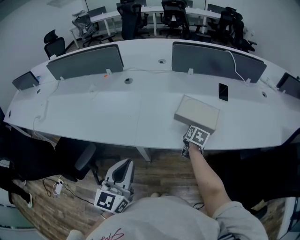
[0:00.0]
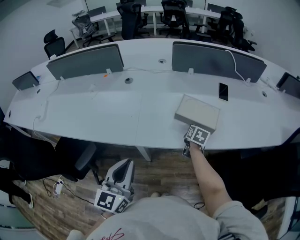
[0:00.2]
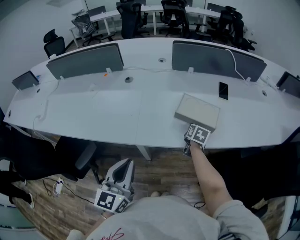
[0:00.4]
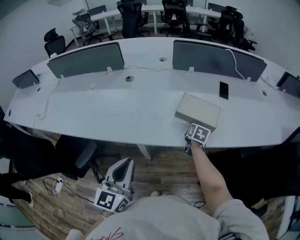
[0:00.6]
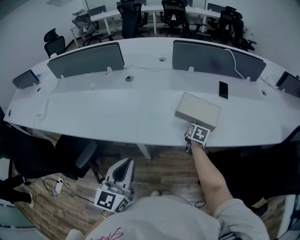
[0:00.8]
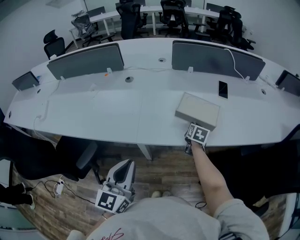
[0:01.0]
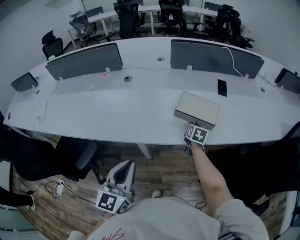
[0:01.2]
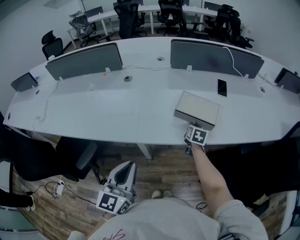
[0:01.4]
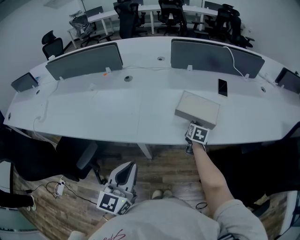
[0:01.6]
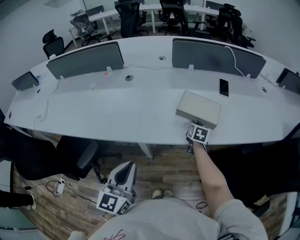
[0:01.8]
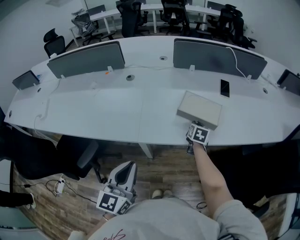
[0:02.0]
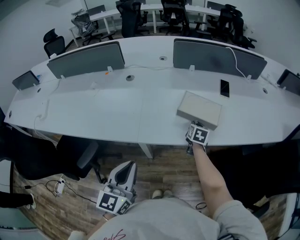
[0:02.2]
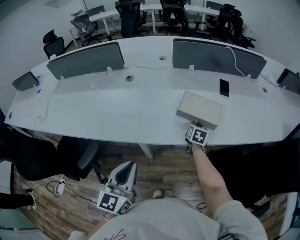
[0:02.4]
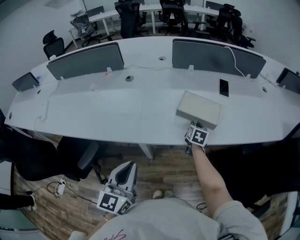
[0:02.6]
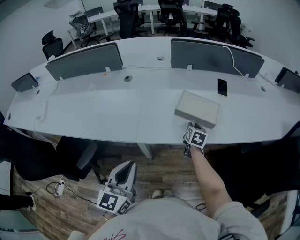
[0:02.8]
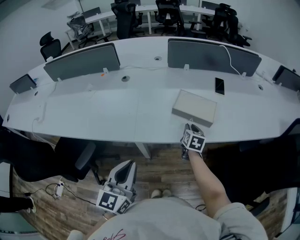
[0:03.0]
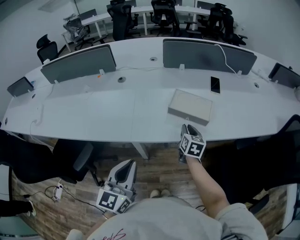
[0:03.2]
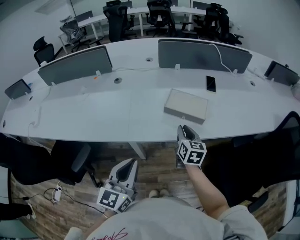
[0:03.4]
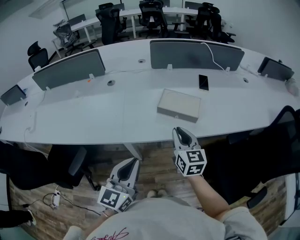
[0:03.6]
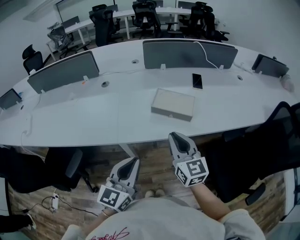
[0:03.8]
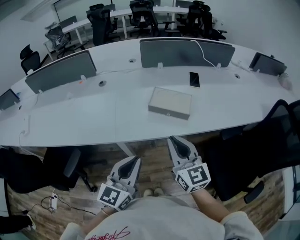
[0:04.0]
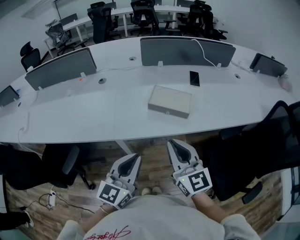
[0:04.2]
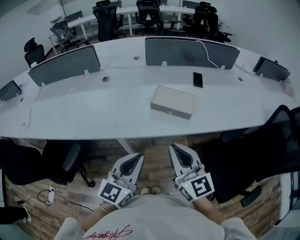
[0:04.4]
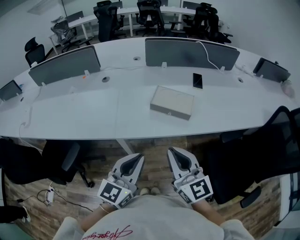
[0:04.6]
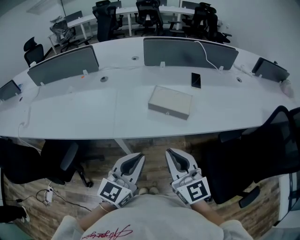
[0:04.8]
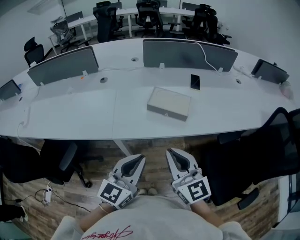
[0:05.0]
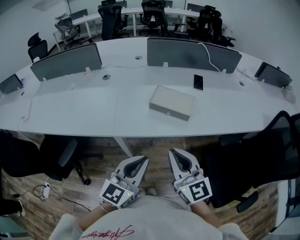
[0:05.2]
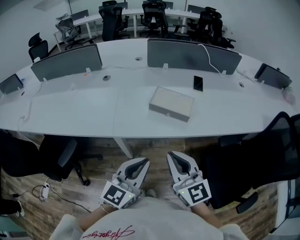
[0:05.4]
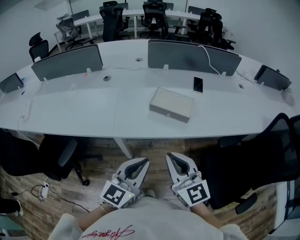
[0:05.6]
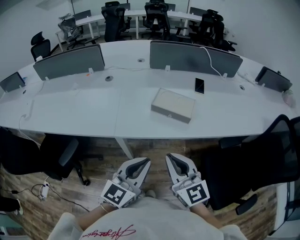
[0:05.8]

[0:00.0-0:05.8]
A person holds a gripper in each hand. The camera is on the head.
0:00.0 to 0:01.4: The grippers stay close to where they were, moving slightly.
0:01.4 to 0:02.8: Both grippers stay put.
0:02.8 to 0:04.4: The left gripper shifts about 10 cm to the right. The right gripper travels backward and upward by roughly 35 cm, and tilts its fingers approximately 40 degrees upward.
0:04.4 to 0:05.8: There are only small adjustments of the grippers.

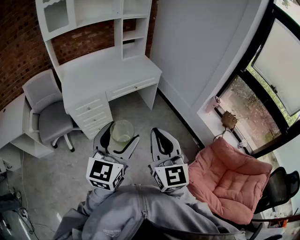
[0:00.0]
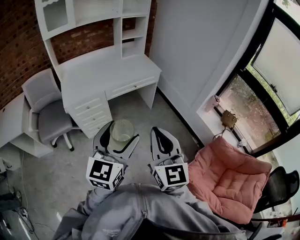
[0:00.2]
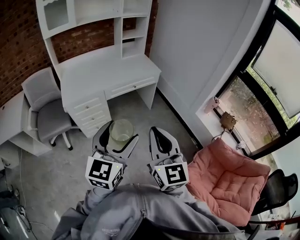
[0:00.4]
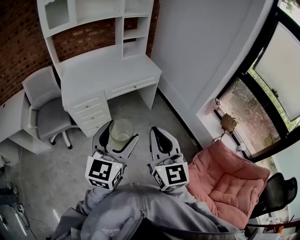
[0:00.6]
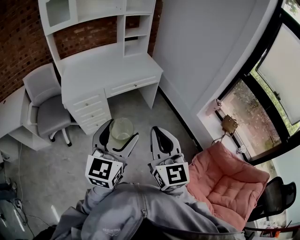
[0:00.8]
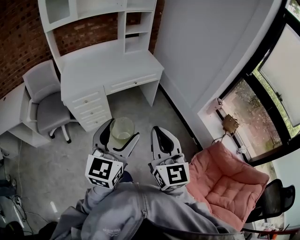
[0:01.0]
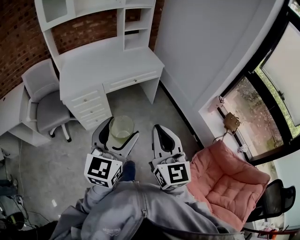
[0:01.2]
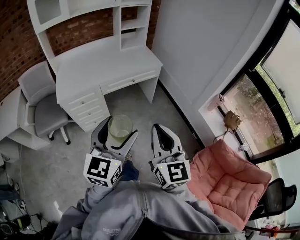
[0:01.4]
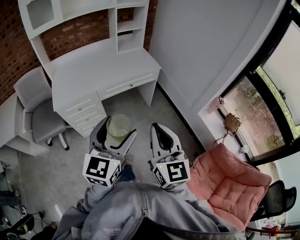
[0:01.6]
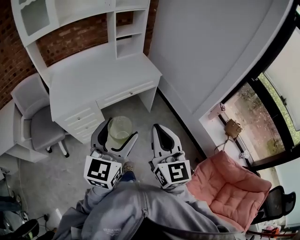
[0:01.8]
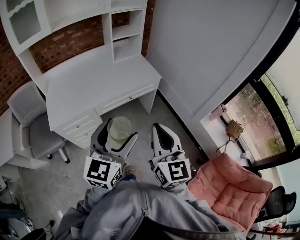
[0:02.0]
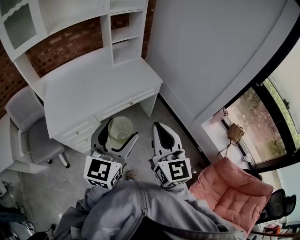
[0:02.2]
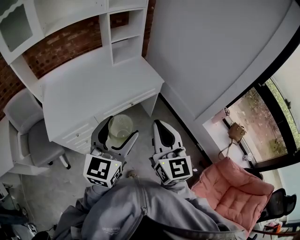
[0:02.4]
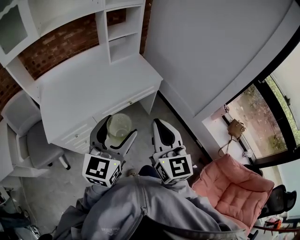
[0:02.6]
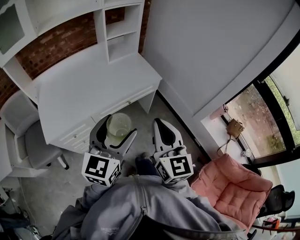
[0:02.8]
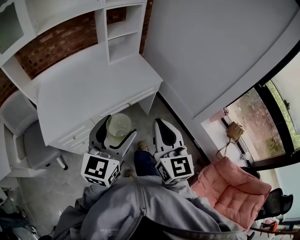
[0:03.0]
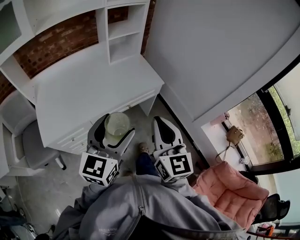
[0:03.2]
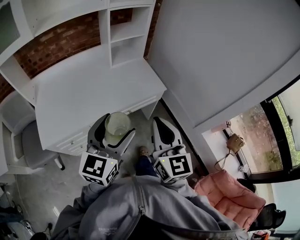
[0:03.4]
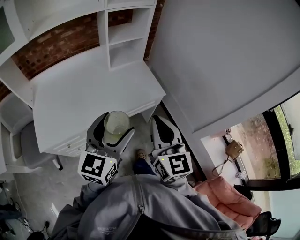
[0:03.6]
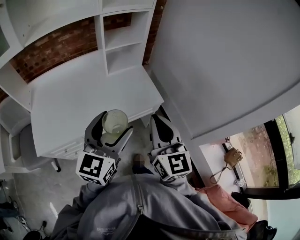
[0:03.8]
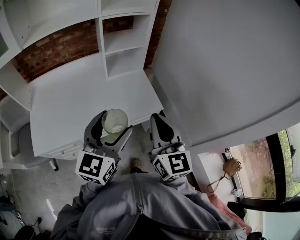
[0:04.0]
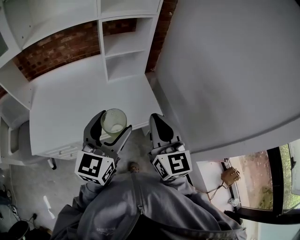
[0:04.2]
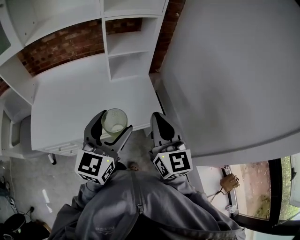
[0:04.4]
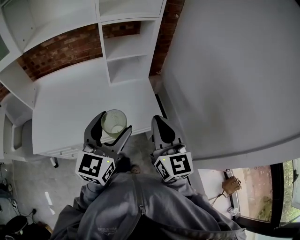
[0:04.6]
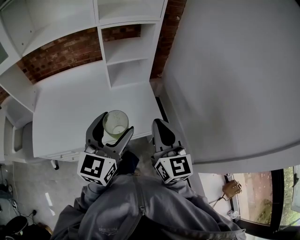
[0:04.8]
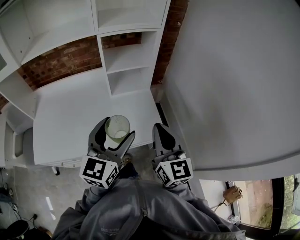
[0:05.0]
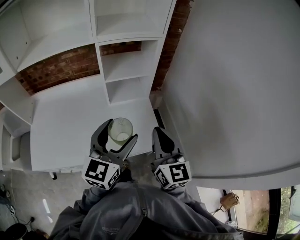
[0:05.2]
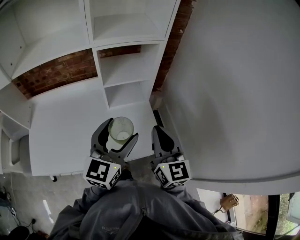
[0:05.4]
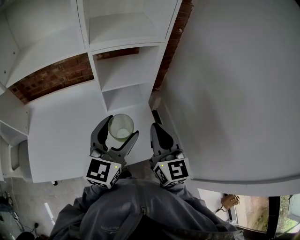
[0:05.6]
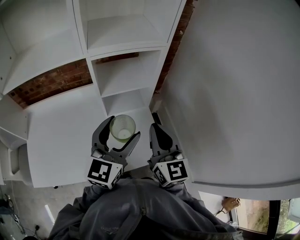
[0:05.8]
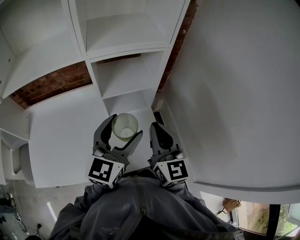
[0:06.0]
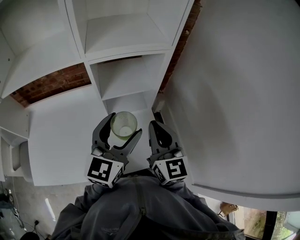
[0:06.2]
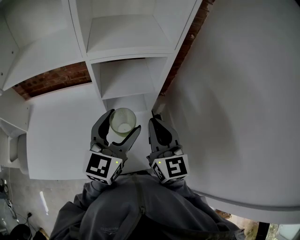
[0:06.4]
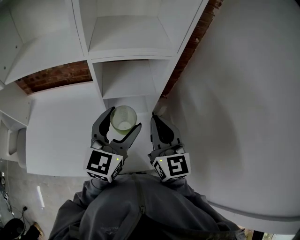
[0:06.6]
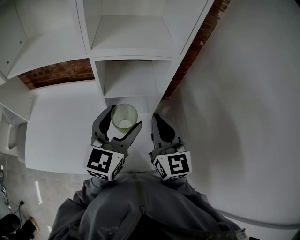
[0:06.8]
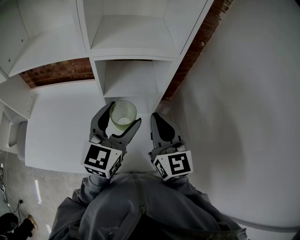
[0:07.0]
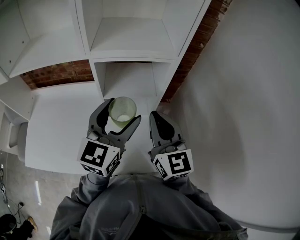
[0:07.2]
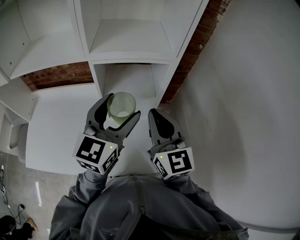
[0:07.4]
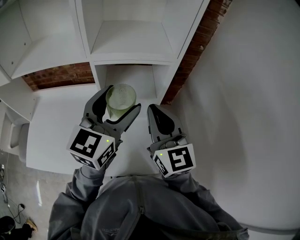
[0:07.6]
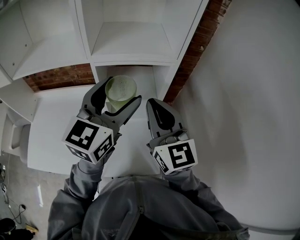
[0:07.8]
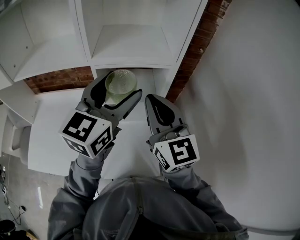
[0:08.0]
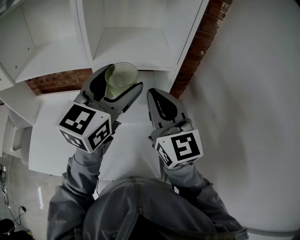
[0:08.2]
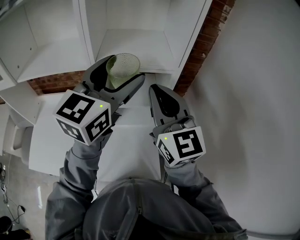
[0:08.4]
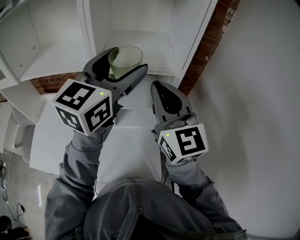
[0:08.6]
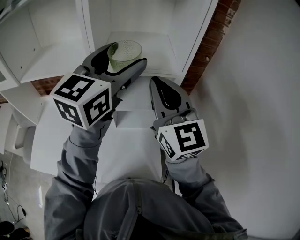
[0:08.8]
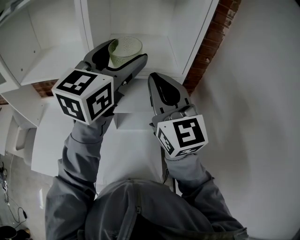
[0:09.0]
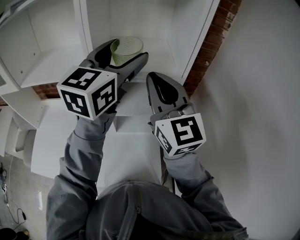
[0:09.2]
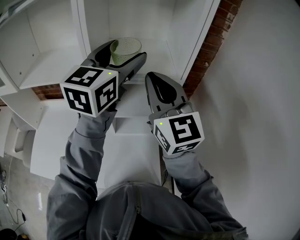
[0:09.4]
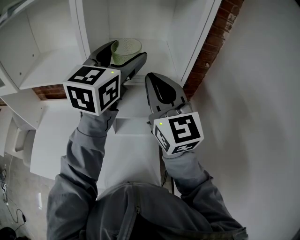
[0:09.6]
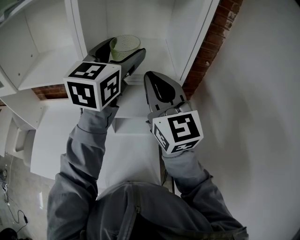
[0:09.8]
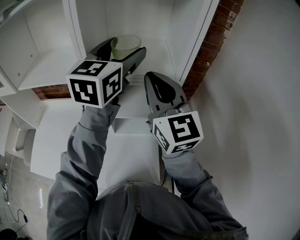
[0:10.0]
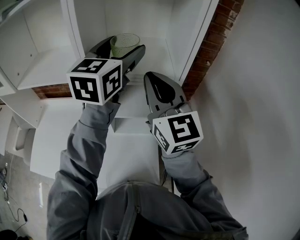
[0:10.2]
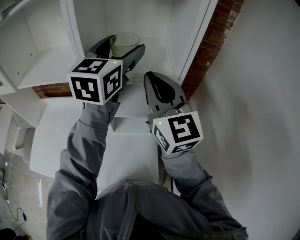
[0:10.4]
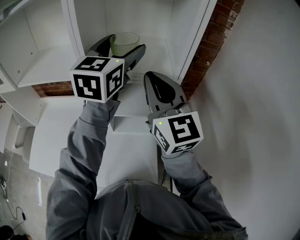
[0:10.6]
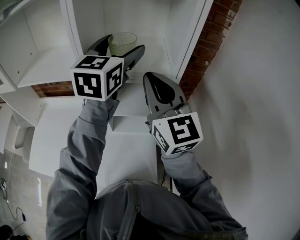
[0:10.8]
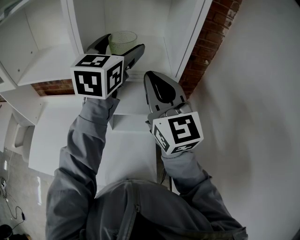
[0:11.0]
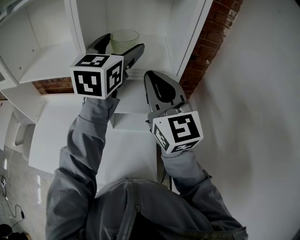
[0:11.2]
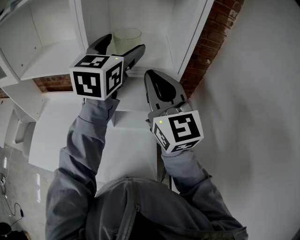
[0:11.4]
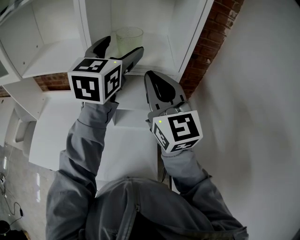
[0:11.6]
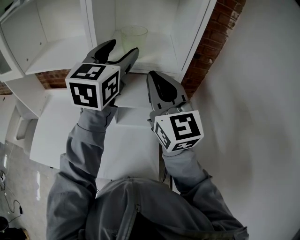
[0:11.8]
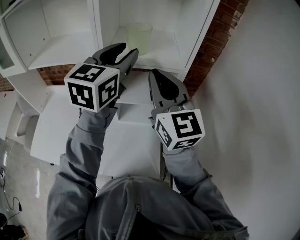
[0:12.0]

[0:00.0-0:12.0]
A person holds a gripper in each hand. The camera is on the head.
0:00.0 to 0:01.6: The grippers both shift forward by some 15 cm.
0:01.6 to 0:03.0: The grippers both shift forward by about 25 cm.
0:03.0 to 0:04.4: The two grippers go approximately 30 cm forward.
0:04.4 to 0:06.0: Both grippers travel together forward, about 25 cm.
0:06.0 to 0:07.6: Both grippers travel together upward and forward, about 10 cm.
0:07.6 to 0:09.0: The grippers both shift upward and forward by about 15 cm.
0:09.0 to 0:10.4: The left gripper goes about 10 cm forward.
0:10.4 to 0:12.0: The left gripper shifts about 5 cm backward, and closes.

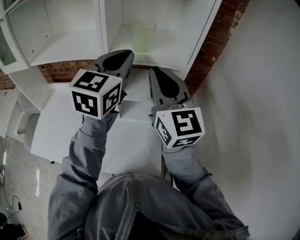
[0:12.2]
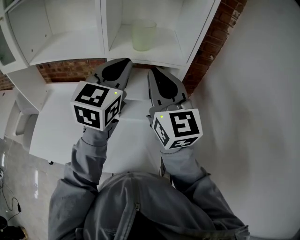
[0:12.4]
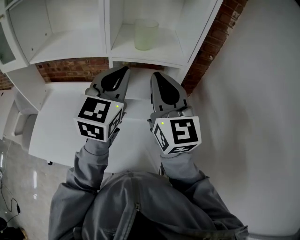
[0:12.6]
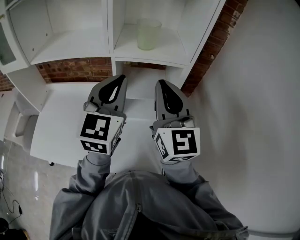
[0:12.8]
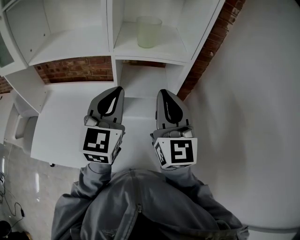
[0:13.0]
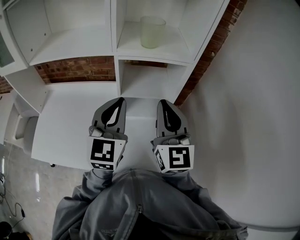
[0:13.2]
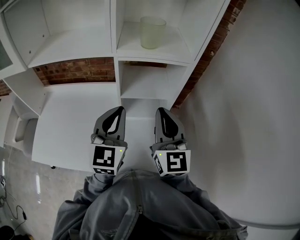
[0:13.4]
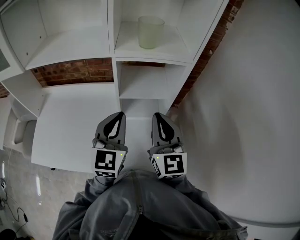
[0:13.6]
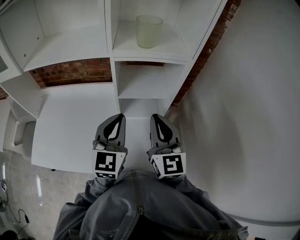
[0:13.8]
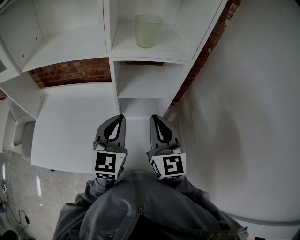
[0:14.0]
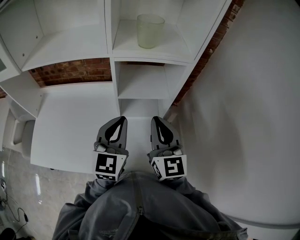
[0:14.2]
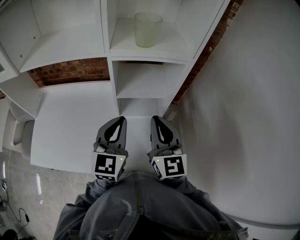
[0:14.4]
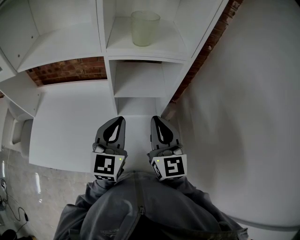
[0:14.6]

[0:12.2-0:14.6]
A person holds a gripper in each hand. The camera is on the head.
0:12.2 to 0:13.4: Both grippers move downward and backward, approximately 15 cm.
0:13.4 to 0:14.6: The grippers move only a little.

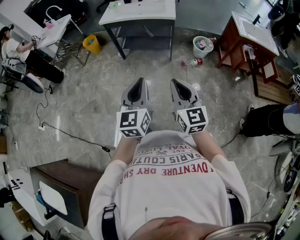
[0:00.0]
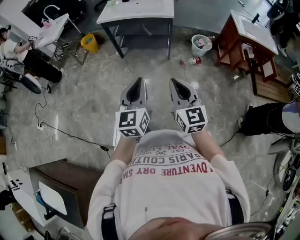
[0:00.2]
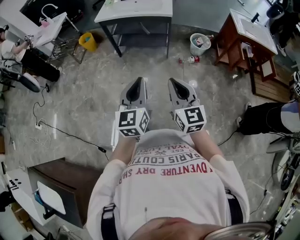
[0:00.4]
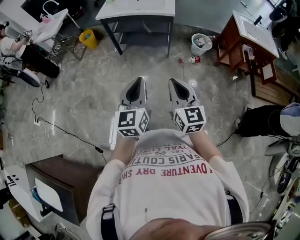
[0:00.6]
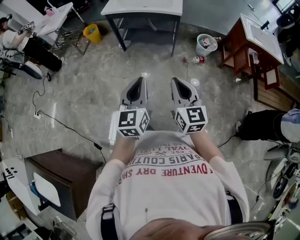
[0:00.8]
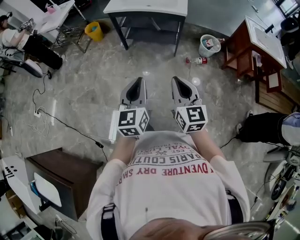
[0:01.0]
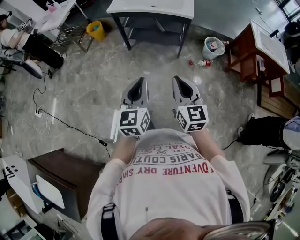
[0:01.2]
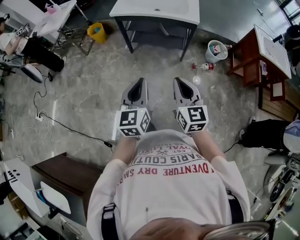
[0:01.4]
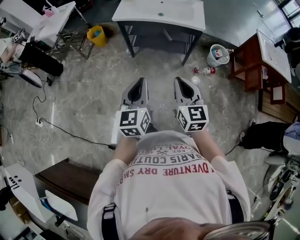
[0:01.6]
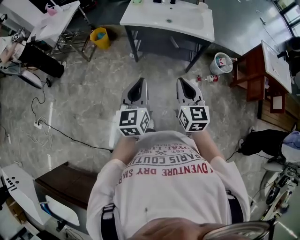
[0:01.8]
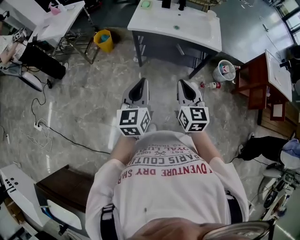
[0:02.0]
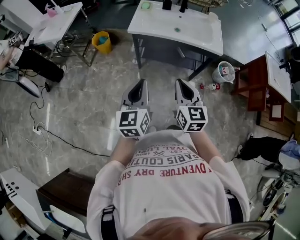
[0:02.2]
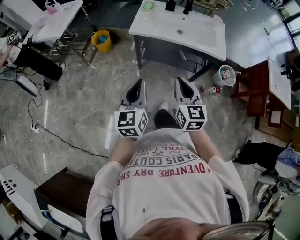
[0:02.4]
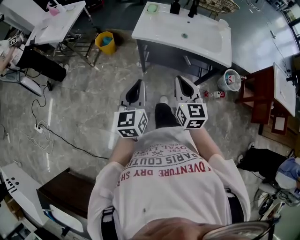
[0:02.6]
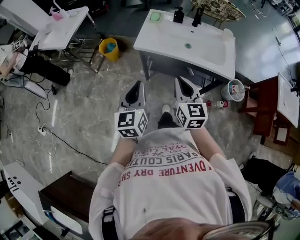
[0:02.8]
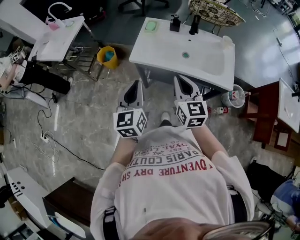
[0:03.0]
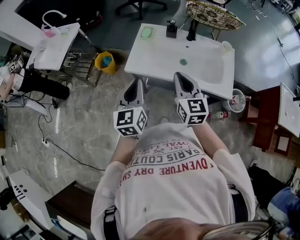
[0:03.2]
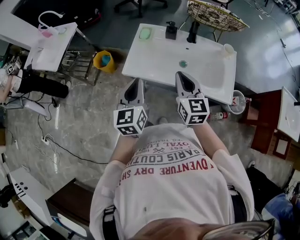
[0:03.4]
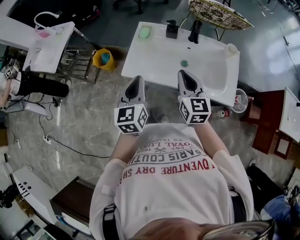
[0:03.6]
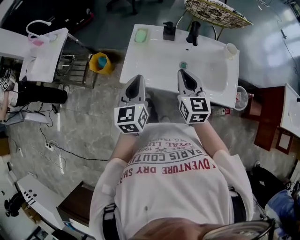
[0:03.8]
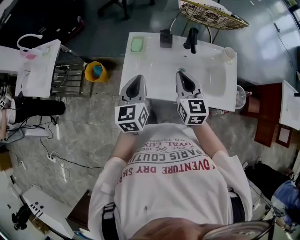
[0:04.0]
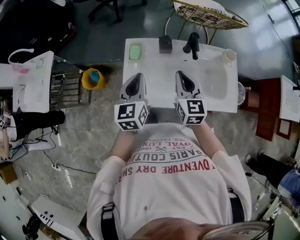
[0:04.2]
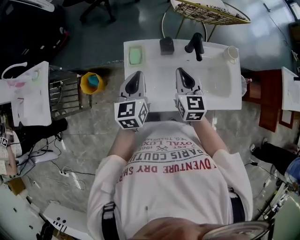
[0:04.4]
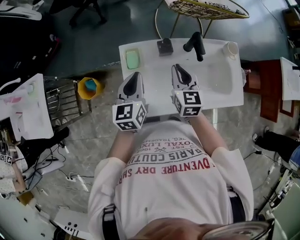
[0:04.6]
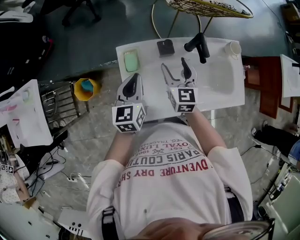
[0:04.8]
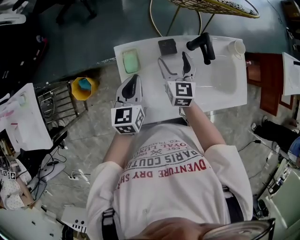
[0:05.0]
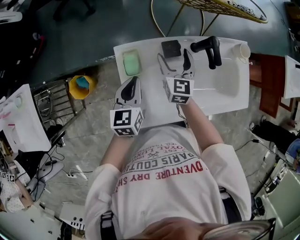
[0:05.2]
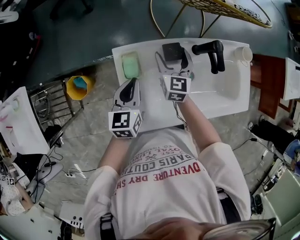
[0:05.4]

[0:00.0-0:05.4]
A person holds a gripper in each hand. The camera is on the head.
0:00.0 to 0:01.4: Both grippers move forward and to the left, about 20 cm.
0:01.4 to 0:02.8: The two grippers travel together, forward and to the left, roughly 40 cm.
0:02.8 to 0:04.0: Both grippers move forward, roughly 35 cm.
0:04.0 to 0:05.4: The left gripper is displaced forward, downward and to the left by roughly 25 cm, and turns by approximately 20 degrees. The right gripper travels forward and downward by about 30 cm, turns by roughly 30 degrees, and opens up.
